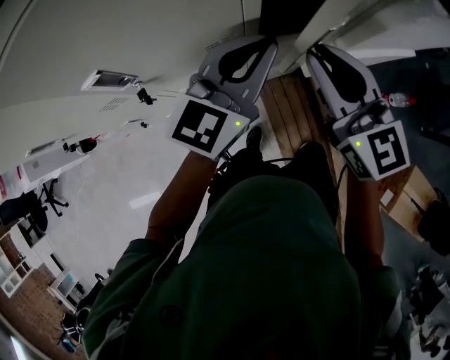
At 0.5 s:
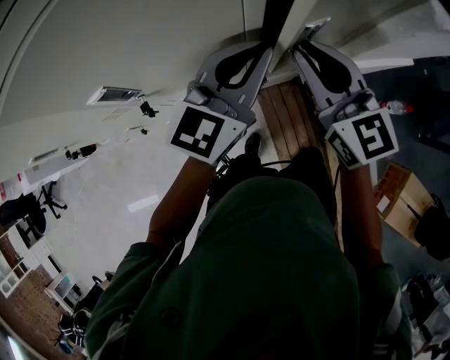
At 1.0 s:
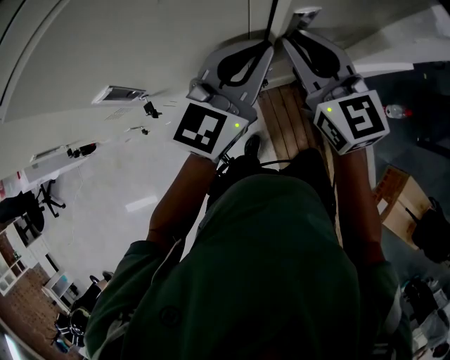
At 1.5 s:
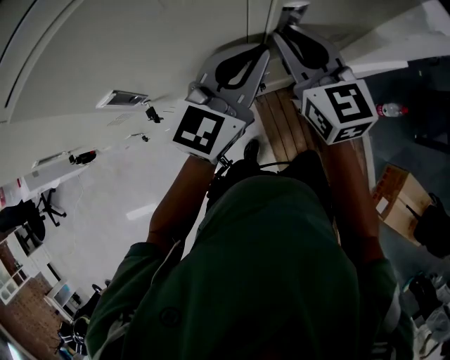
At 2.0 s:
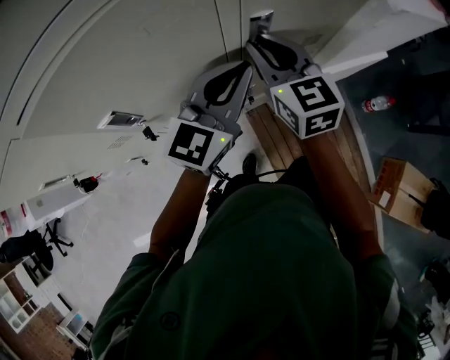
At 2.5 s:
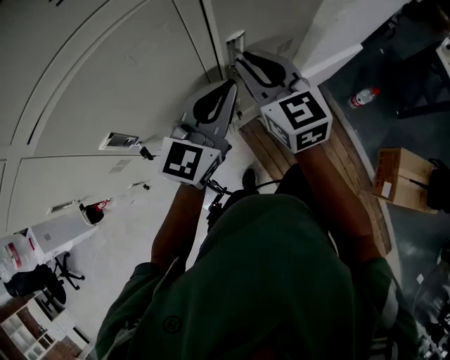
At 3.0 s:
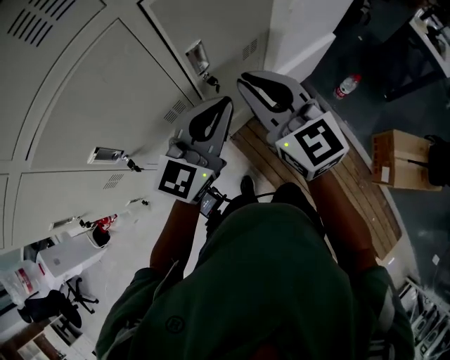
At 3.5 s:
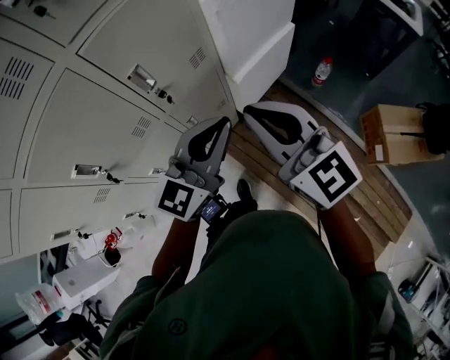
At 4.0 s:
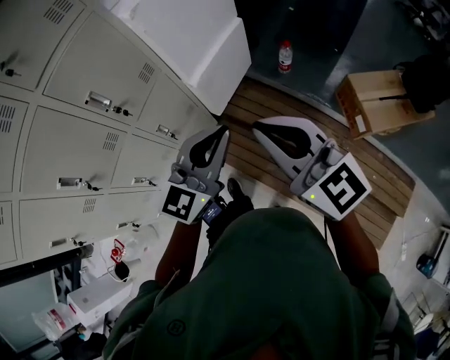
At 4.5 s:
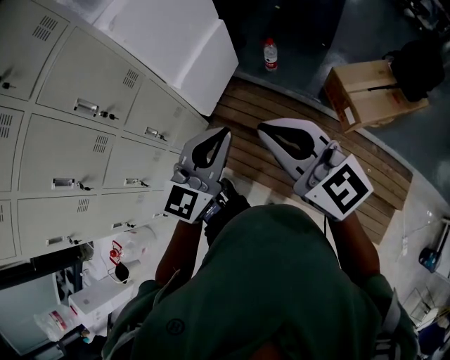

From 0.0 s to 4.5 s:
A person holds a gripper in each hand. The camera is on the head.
From 0.0 s to 2.0 s: The right gripper travels forward by roughly 10 cm.
From 2.0 s to 4.5 s: The pair of grippers is taken roughly 50 cm. The left gripper changes its angle by approximately 40 degrees. Meanwhile the right gripper changes its angle by roughly 20 degrees.

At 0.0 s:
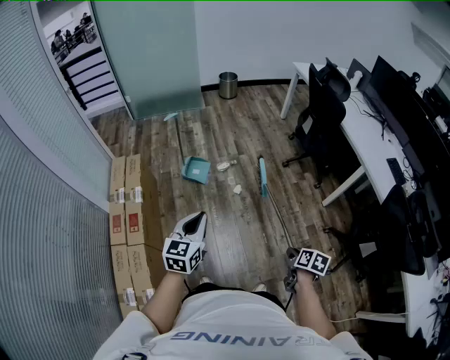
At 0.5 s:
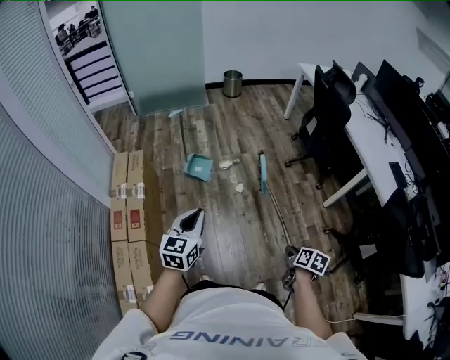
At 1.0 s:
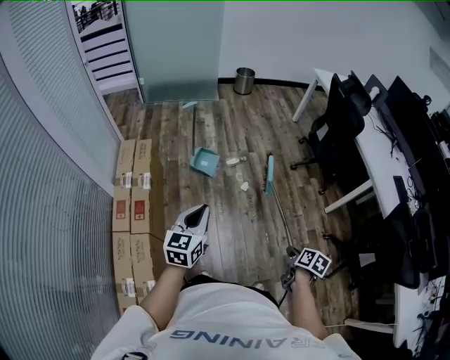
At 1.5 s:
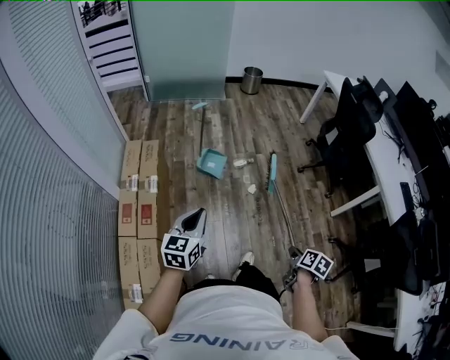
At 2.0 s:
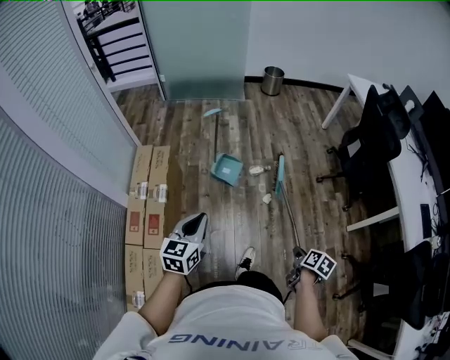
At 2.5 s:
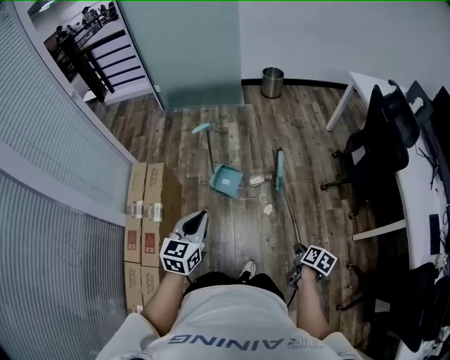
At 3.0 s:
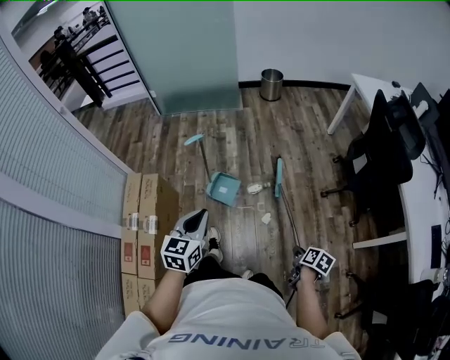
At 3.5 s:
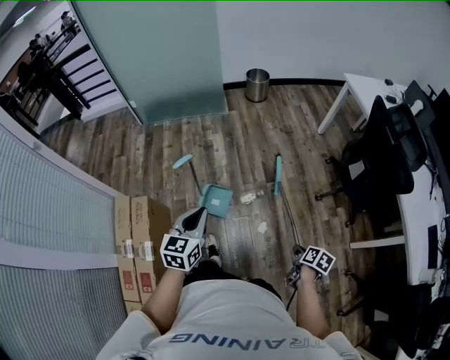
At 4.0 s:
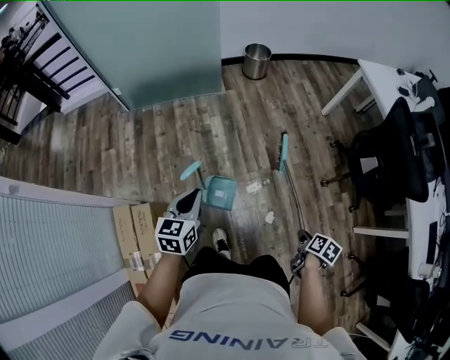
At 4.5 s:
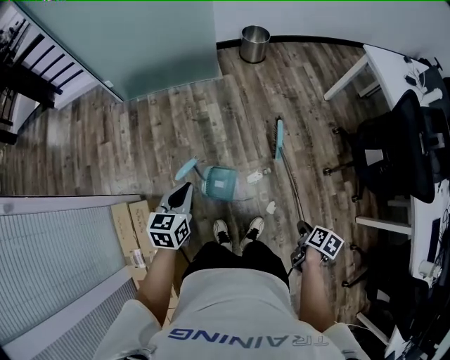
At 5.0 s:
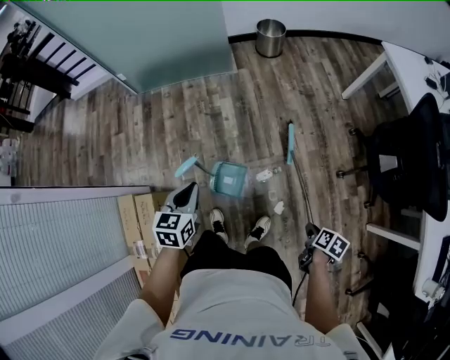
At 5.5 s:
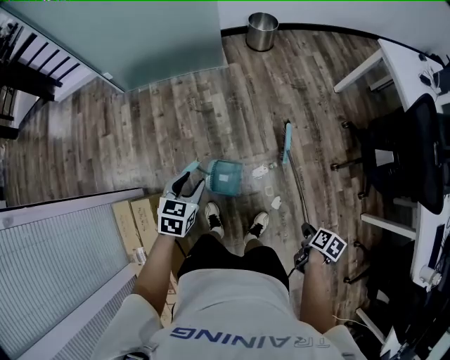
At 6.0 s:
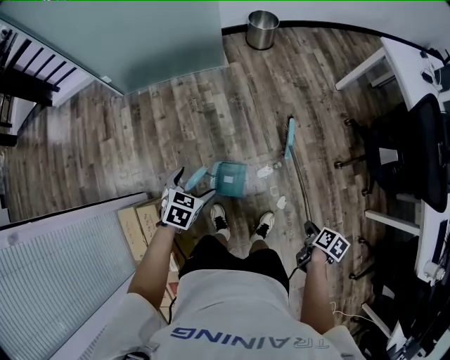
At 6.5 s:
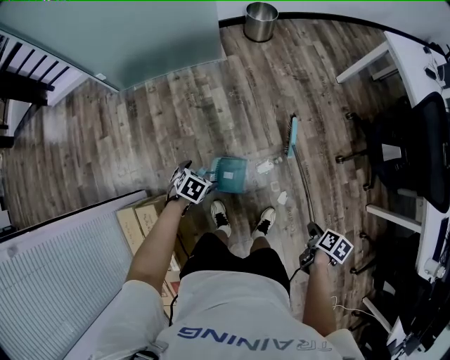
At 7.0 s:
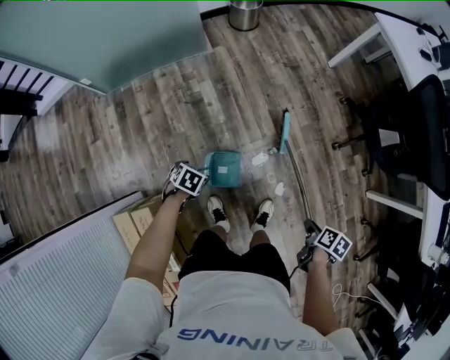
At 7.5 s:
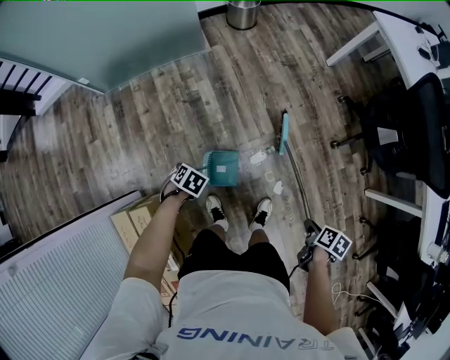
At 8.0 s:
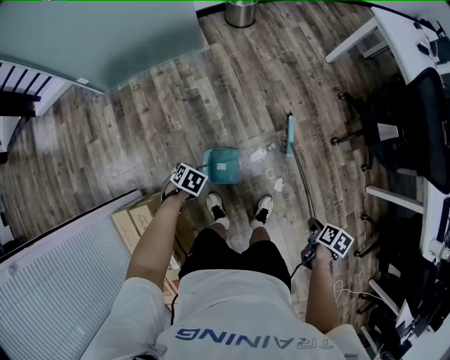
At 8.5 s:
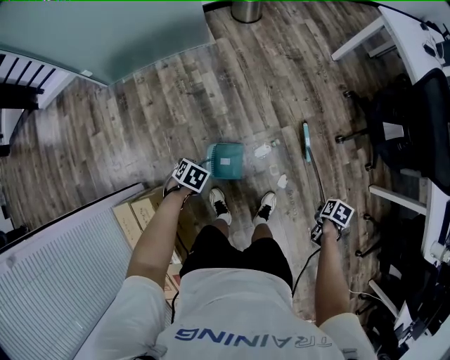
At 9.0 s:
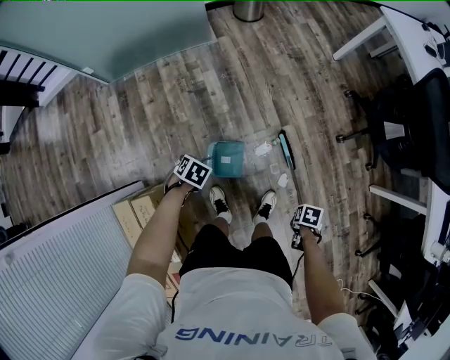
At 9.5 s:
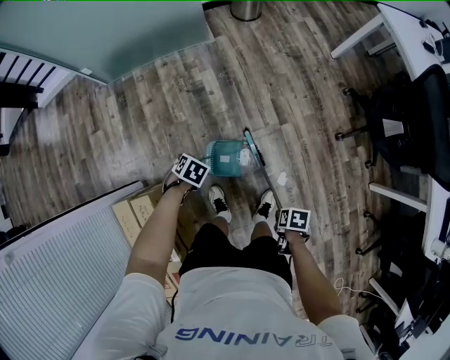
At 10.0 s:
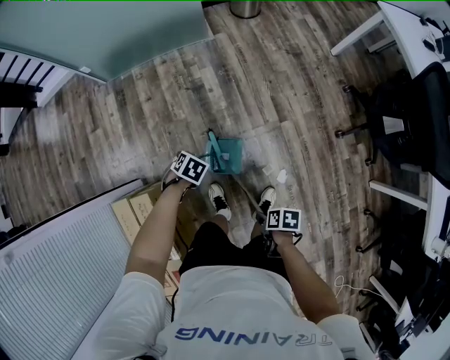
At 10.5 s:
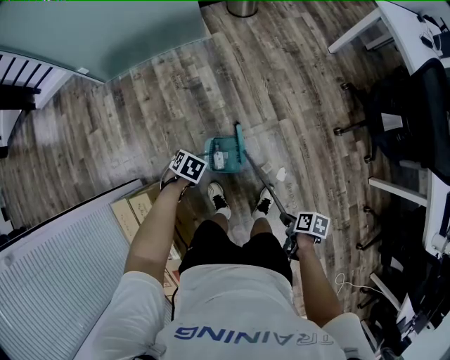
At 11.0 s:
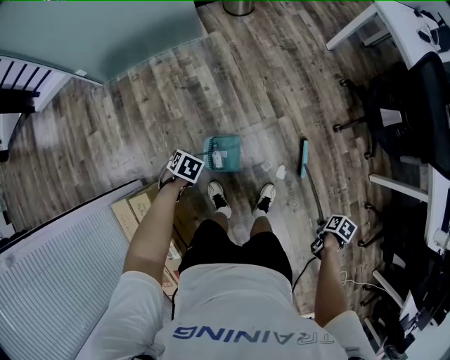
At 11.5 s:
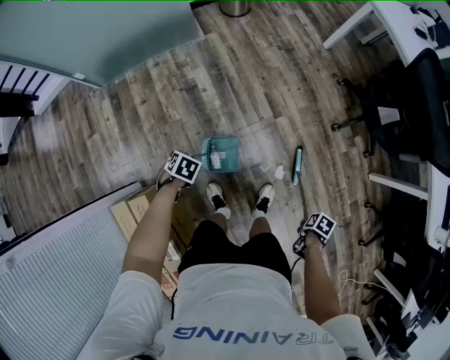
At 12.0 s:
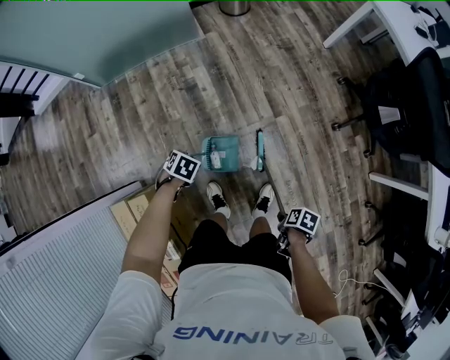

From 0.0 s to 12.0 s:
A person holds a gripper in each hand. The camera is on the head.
From 0.0 s to 2.0 s: The left gripper moves about 20 cm.
From 2.0 s to 4.0 s: The left gripper shifts by roughly 50 cm.
From 4.0 s to 6.0 s: The left gripper heads downward, covering some 15 cm, changes its angle by roughly 40 degrees, and opens its fingers.
From 6.0 s to 8.0 s: The left gripper heads downward, covering roughly 15 cm, changes its angle by about 30 degrees, and closes up.

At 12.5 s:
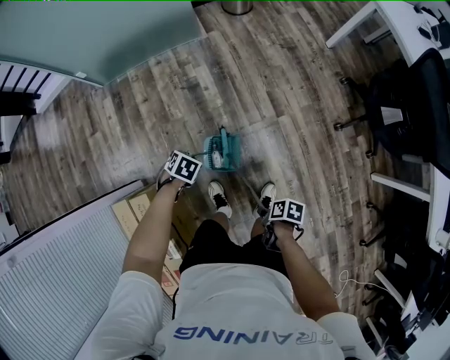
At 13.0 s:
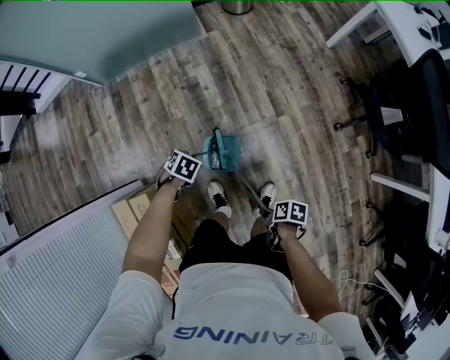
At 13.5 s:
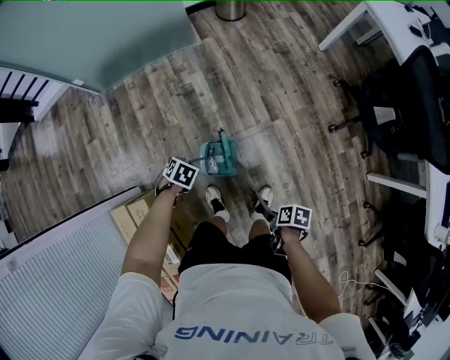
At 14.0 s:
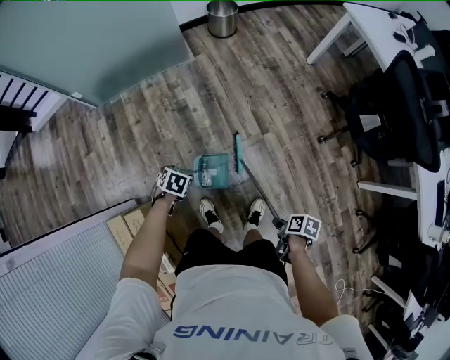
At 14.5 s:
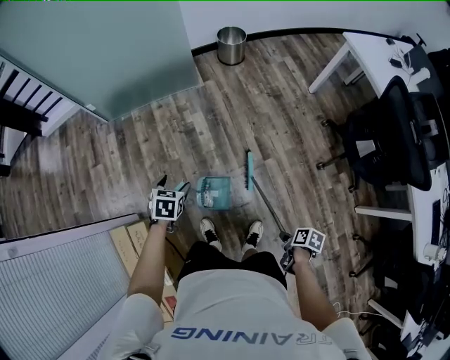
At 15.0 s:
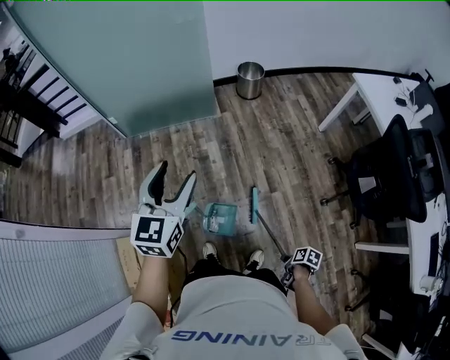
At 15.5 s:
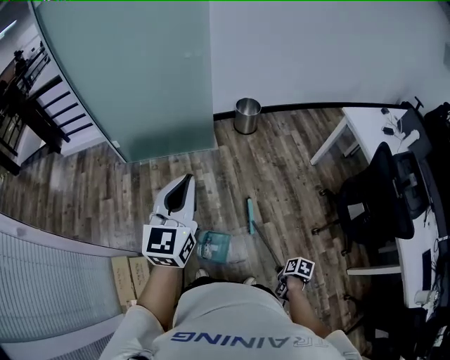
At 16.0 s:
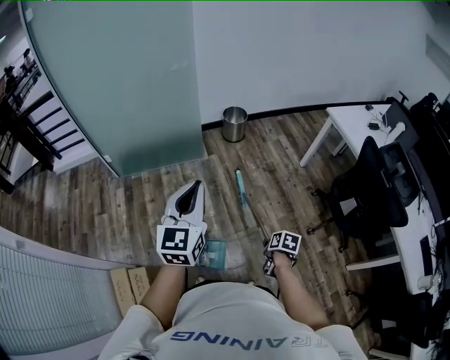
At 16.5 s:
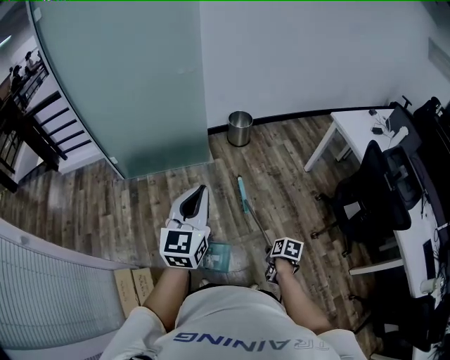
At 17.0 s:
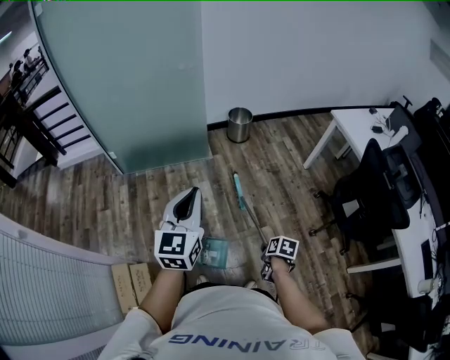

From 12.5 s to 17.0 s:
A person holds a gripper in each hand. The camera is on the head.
From 12.5 s to 14.5 s: The left gripper goes roughly 15 cm upward, turns by roughly 30 degrees, and opens.
From 14.5 s to 17.0 s: The left gripper shifts some 35 cm upward, angles its fingers upward, by approximately 50 degrees, and closes.

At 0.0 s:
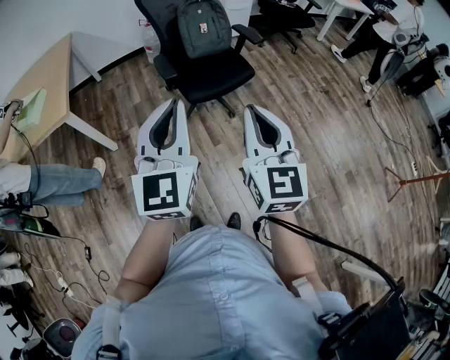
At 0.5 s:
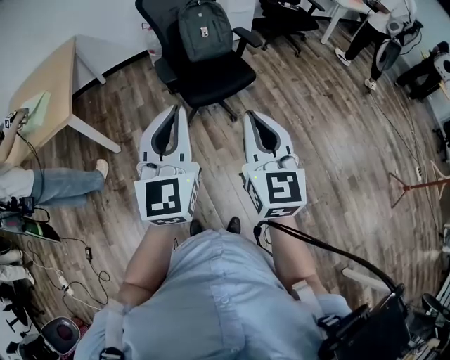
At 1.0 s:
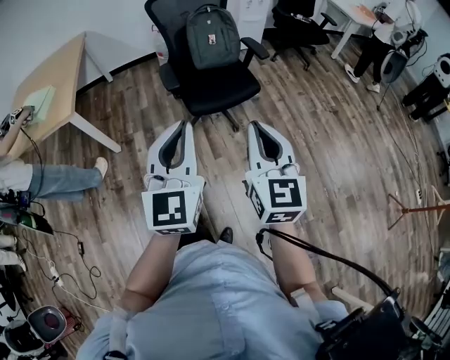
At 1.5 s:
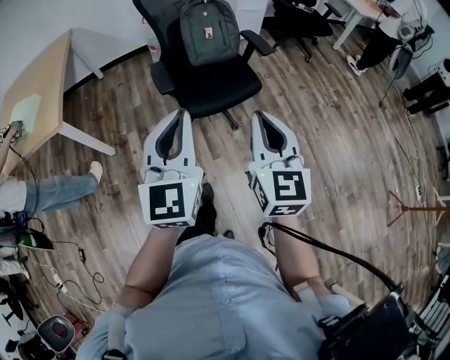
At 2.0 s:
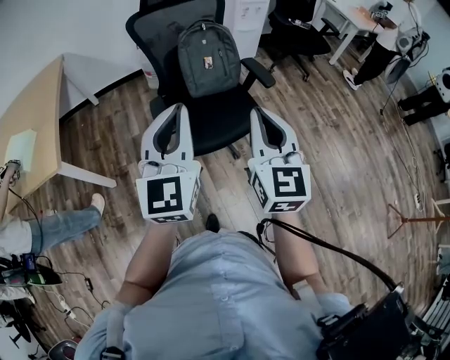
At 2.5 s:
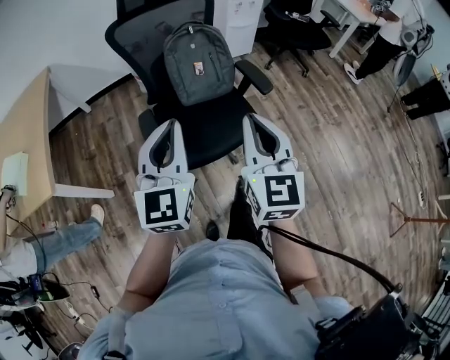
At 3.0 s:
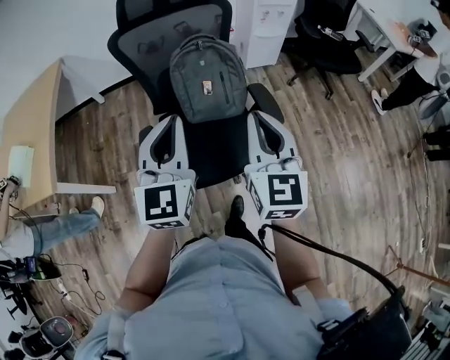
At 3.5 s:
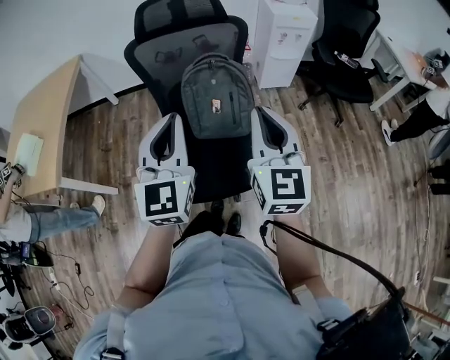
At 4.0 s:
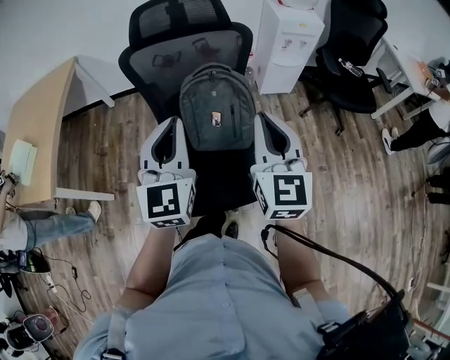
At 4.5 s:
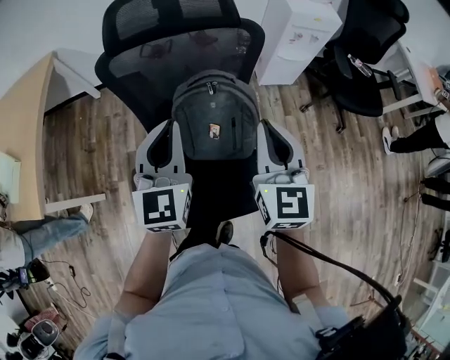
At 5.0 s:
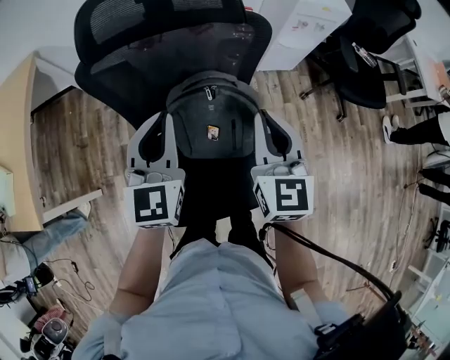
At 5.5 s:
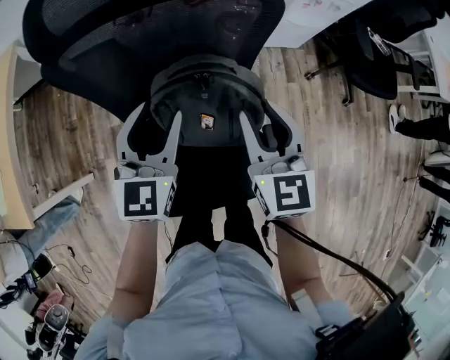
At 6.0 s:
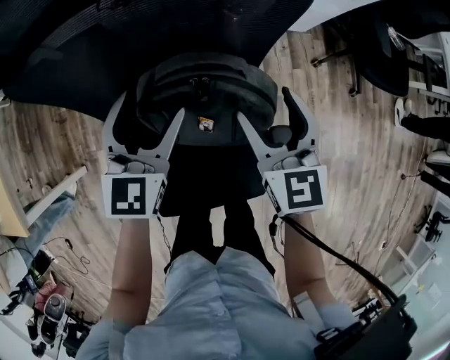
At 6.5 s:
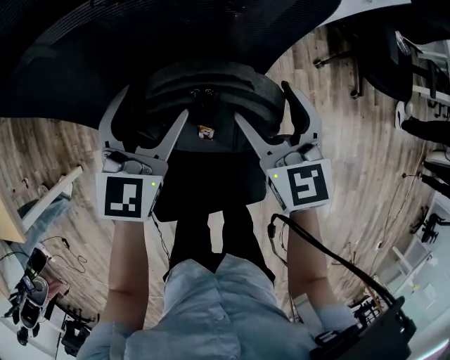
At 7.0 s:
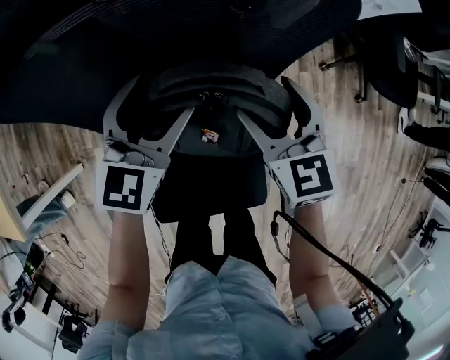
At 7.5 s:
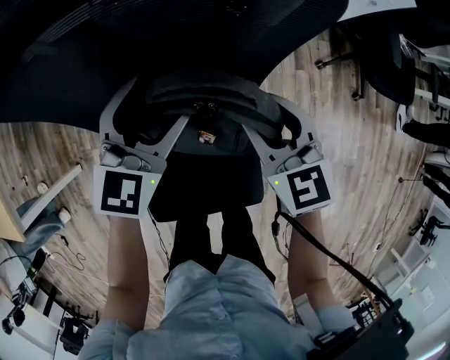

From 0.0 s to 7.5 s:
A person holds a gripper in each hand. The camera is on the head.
From 0.0 s to 2.0 s: The grippers both shift forward by about 30 cm.
From 2.0 s to 4.0 s: The grippers both shift forward by some 35 cm.
From 4.0 s to 5.5 s: The grippers both shift forward and downward by some 25 cm. The right gripper opens up. Meanwhile the left gripper opens.
From 5.5 s to 7.5 s: The left gripper heads downward and forward, covering some 10 cm, and opens its fingers. The right gripper goes roughly 5 cm downward, and opens, then closes again.
